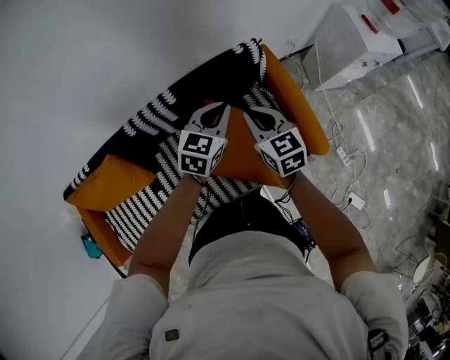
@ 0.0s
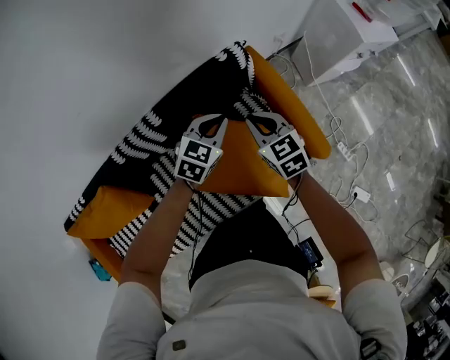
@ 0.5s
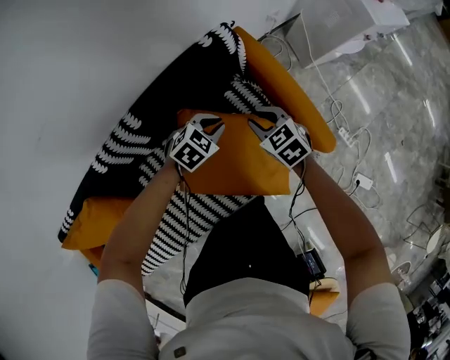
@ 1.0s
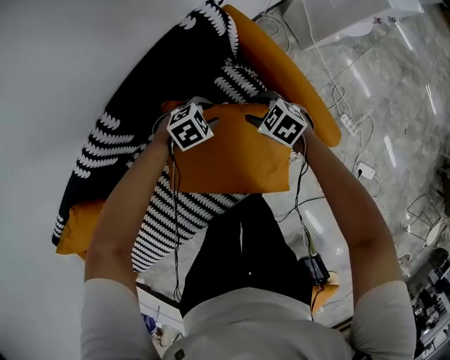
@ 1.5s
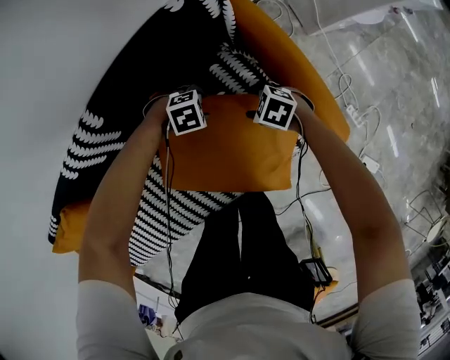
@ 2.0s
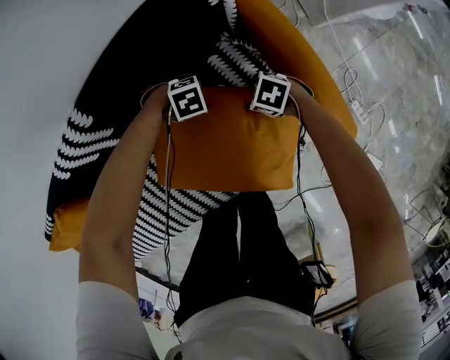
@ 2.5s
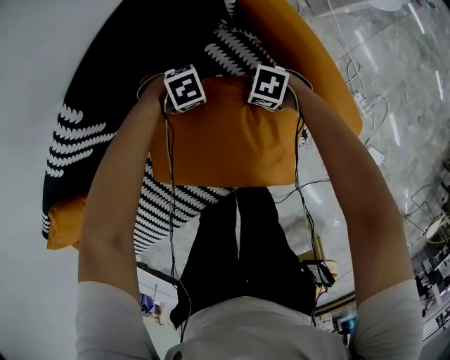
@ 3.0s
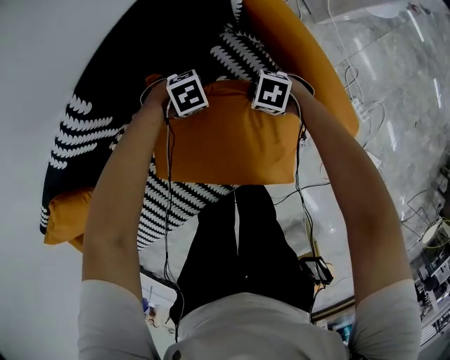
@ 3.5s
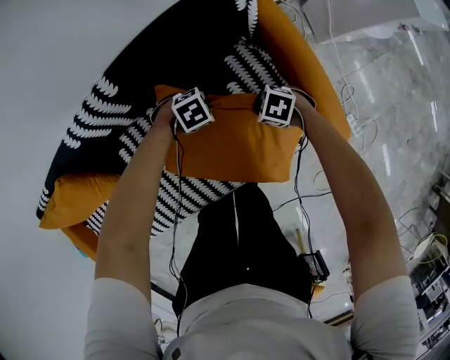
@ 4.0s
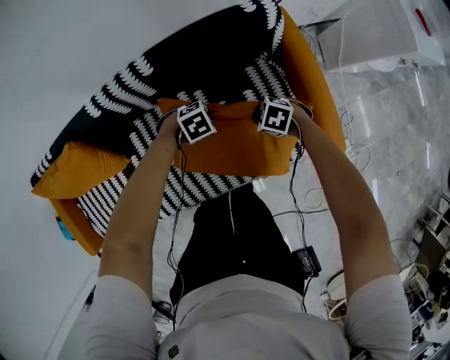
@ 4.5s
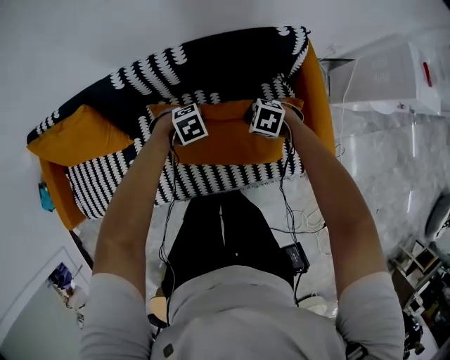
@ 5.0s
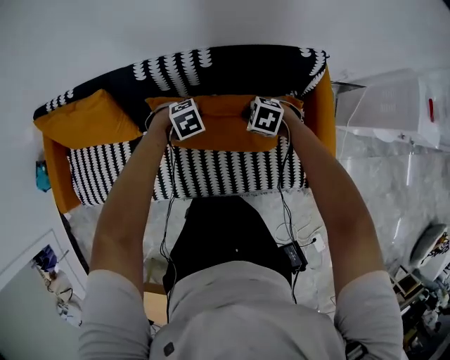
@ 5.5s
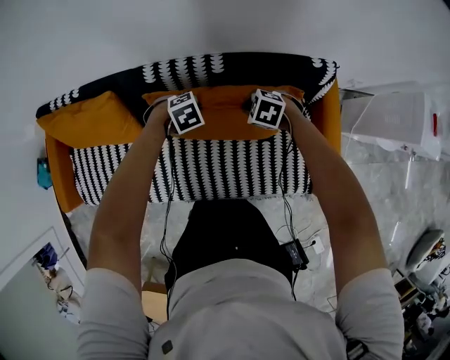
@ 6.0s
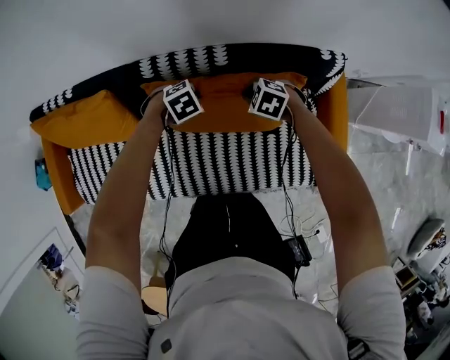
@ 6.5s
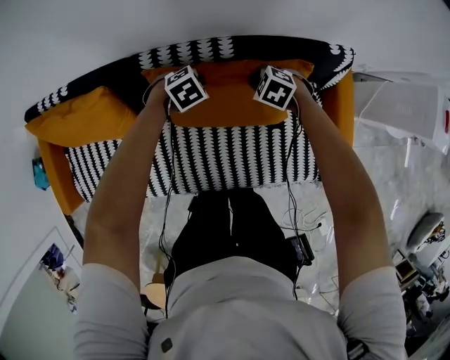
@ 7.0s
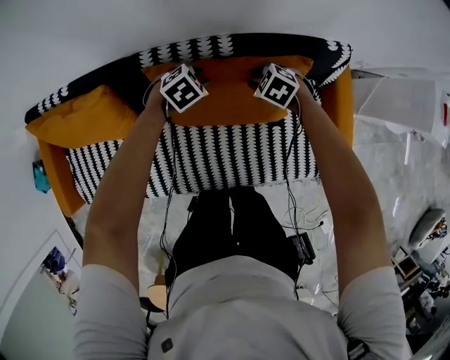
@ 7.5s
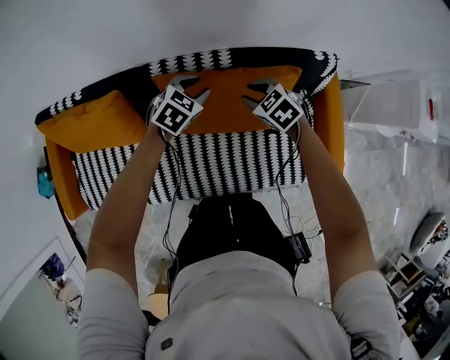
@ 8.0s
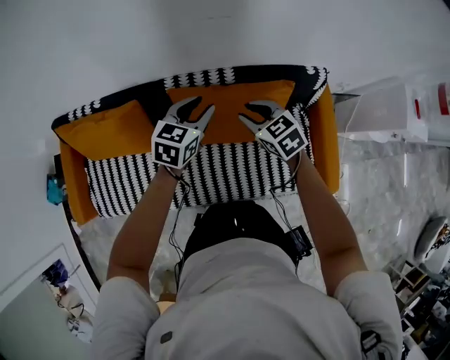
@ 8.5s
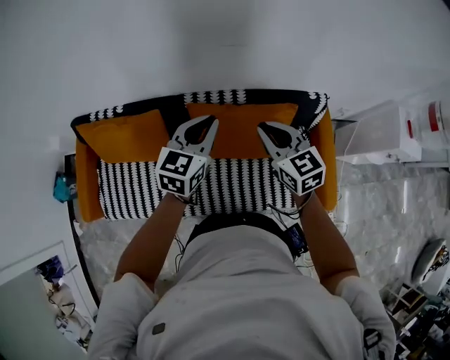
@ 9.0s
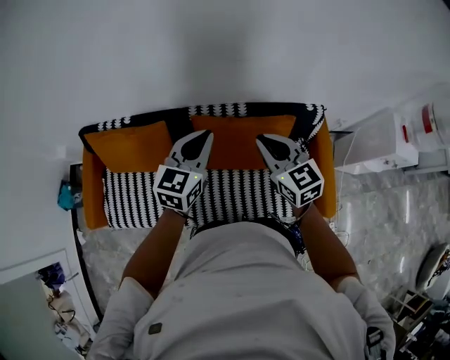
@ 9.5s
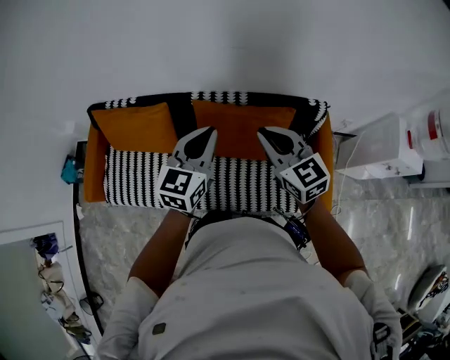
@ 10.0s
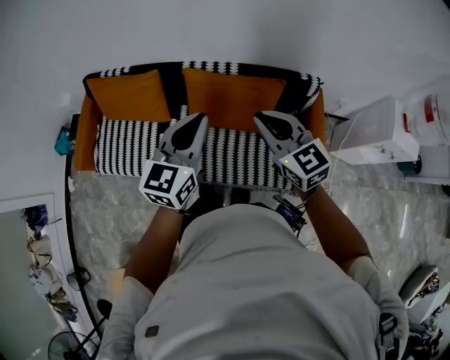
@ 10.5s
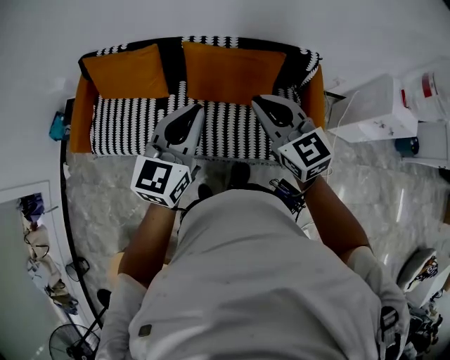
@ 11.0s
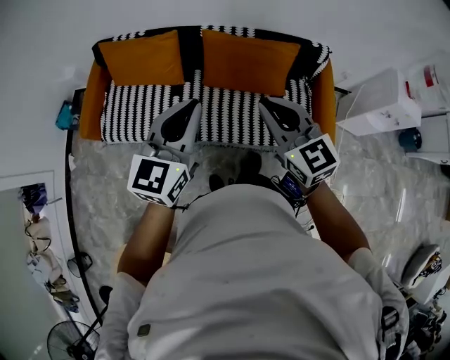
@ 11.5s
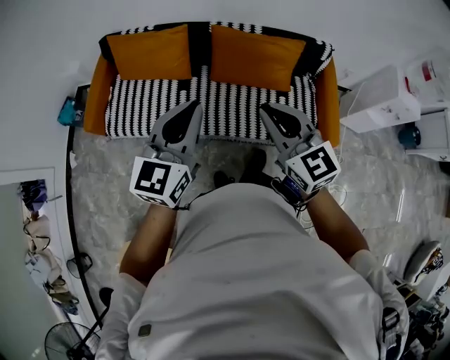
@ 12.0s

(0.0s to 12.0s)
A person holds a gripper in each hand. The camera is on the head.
0.0s - 2.0s: The grippers both shift downward by roughly 50 cm. The right gripper tips its fingers downward by about 40 degrees, and opens up; the left gripper angles its fingers downward, by some 40 degrees, and opens its fingers.
2.0s - 4.0s: The left gripper travels downward and back again, approximately 5 cm each way, and closes. The right gripper shifts roughly 5 cm forward, travels downward and back again, roughly 10 cm each way, and closes up.
4.0s - 6.0s: The right gripper ends up approximately 30 cm from where it was, and changes its angle by about 30 degrees. The left gripper shifts by some 30 cm, and rotates about 30 degrees.
6.0s - 8.0s: Both grippers travel together upward, approximately 10 cm. The right gripper rotates roughly 30 degrees, and opens up, while the left gripper turns by about 40 degrees, and opens up.
8.0s - 10.0s: Both grippers travel together upward and backward, some 40 cm. The left gripper points its fingers about 40 degrees further upward, and closes up. Meanwhile the right gripper tilts its fingers approximately 40 degrees upward, and closes.
10.0s - 12.0s: Both grippers travel together backward and to the left, about 35 cm.

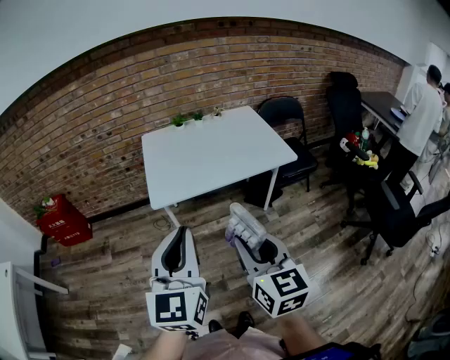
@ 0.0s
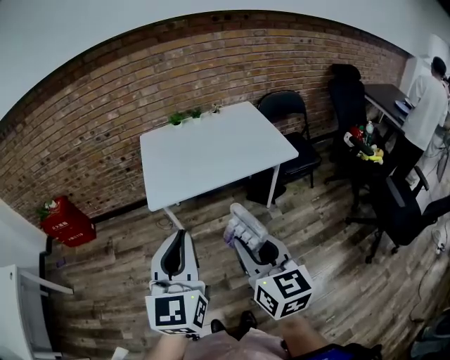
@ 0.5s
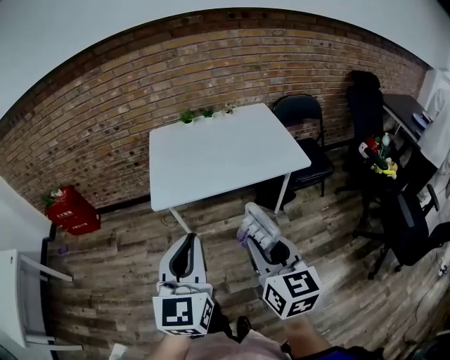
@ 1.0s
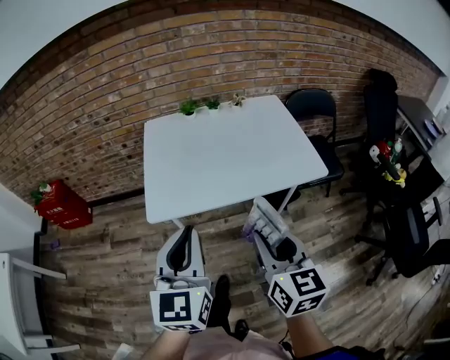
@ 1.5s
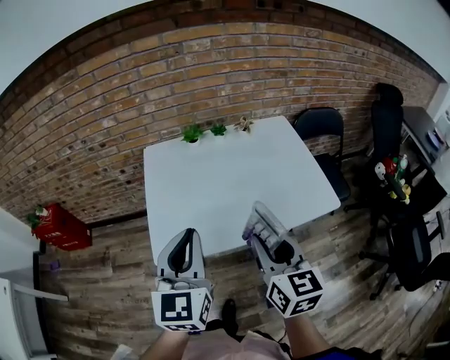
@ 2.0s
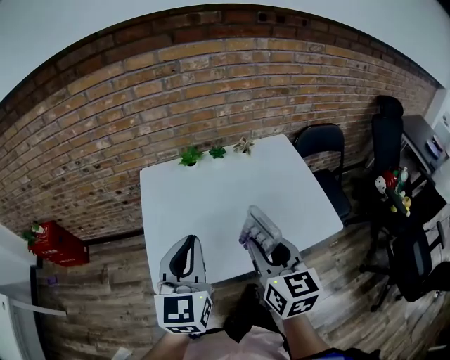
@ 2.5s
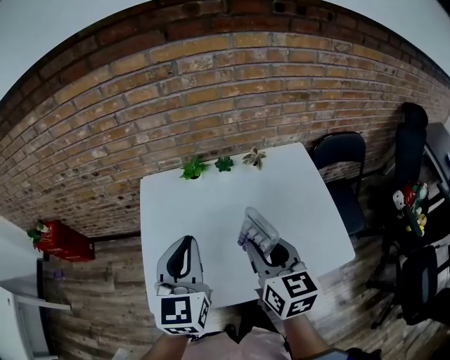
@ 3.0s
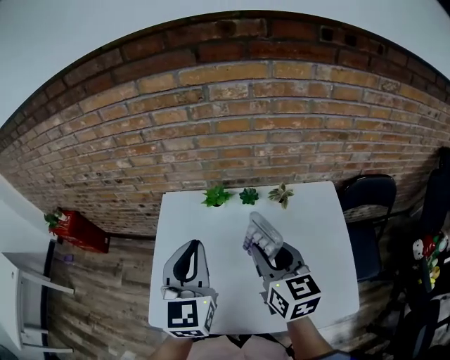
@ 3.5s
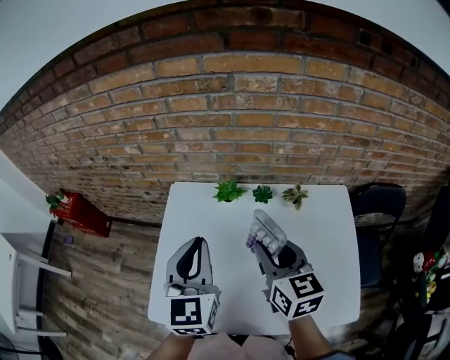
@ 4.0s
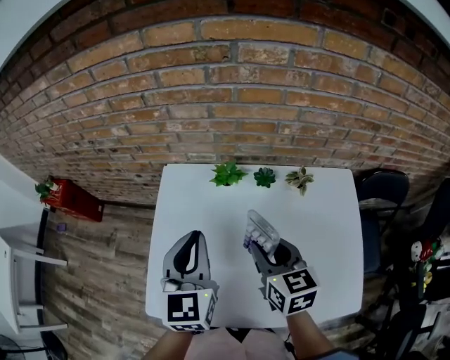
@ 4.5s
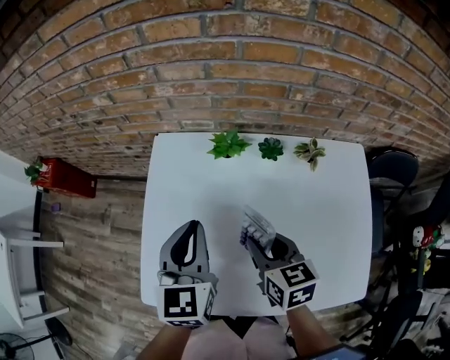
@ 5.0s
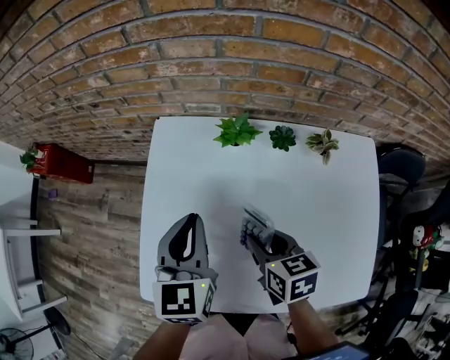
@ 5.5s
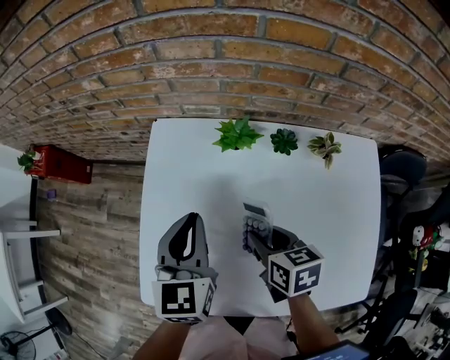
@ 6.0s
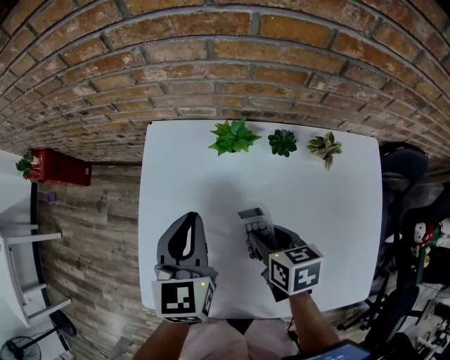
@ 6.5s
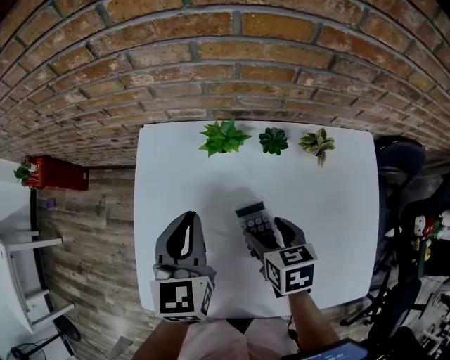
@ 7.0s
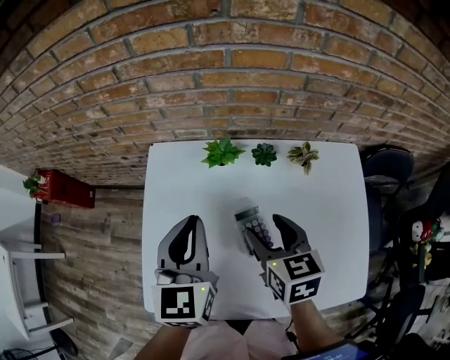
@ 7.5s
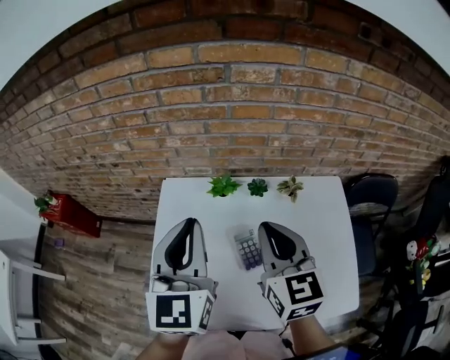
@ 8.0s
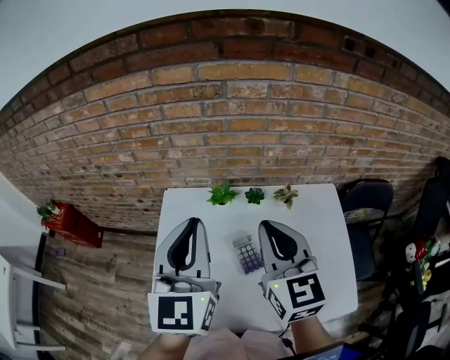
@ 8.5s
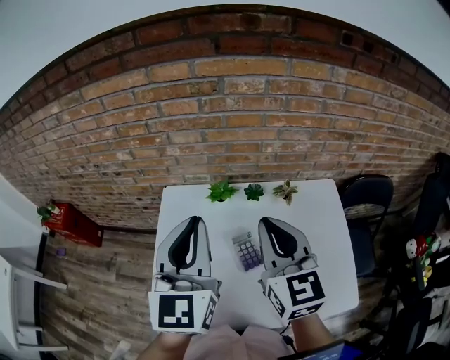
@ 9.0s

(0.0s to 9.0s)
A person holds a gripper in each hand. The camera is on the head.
0.0s - 2.0s: The two grippers go about 35 cm forward.
2.0s - 4.5s: The grippers both shift forward by about 30 cm. The left gripper changes its angle by approximately 20 degrees; the right gripper swivels some 30 degrees.
4.5s - 7.0s: The right gripper shifts about 15 cm downward, changes its angle by roughly 30 degrees, and opens; the left gripper is displaced downward and forward by some 10 cm.
7.0s - 9.0s: Both grippers travel together upward, approximately 25 cm. The left gripper swivels some 30 degrees; the right gripper tips its fingers upward by roughly 40 degrees, and closes its fingers.

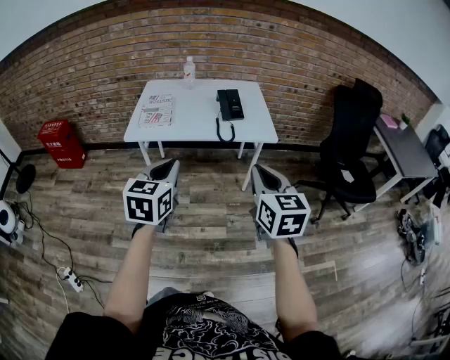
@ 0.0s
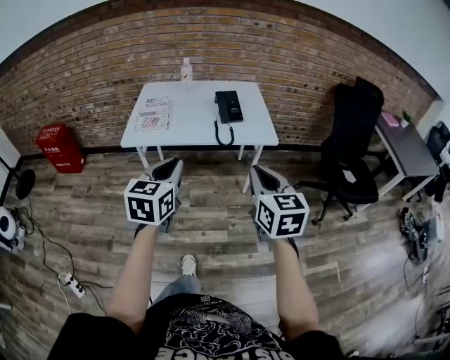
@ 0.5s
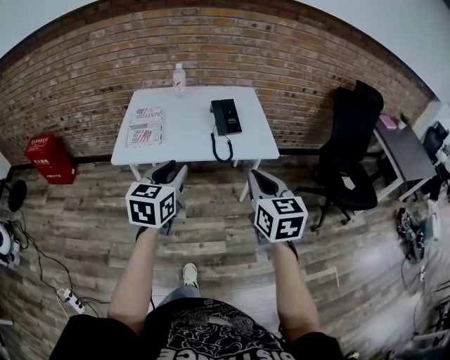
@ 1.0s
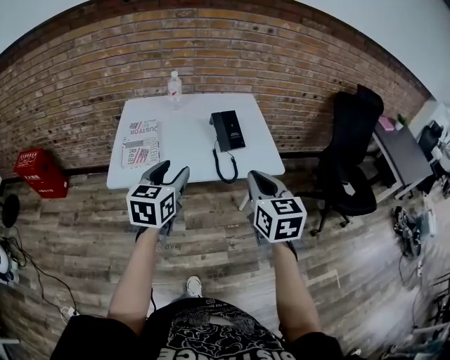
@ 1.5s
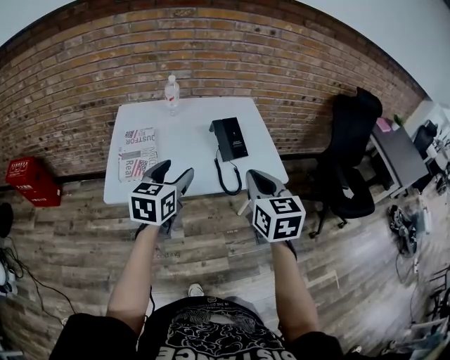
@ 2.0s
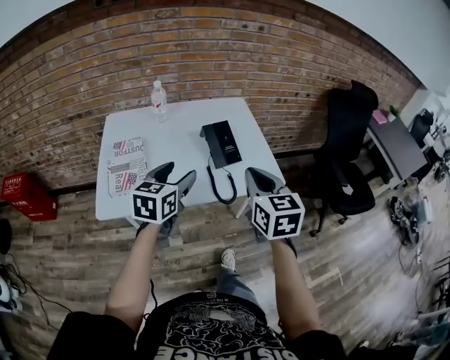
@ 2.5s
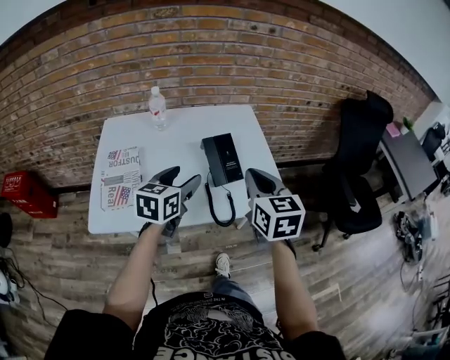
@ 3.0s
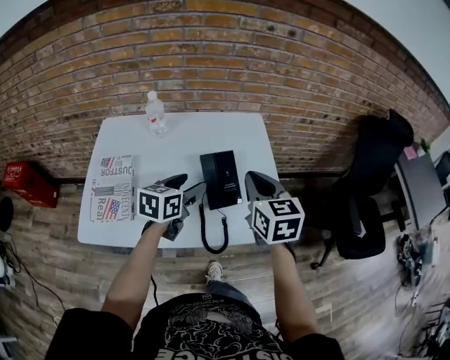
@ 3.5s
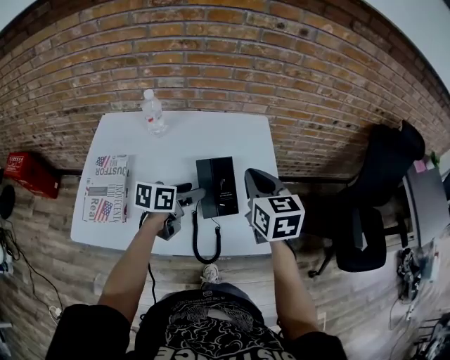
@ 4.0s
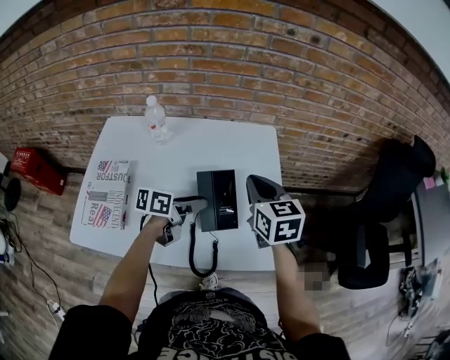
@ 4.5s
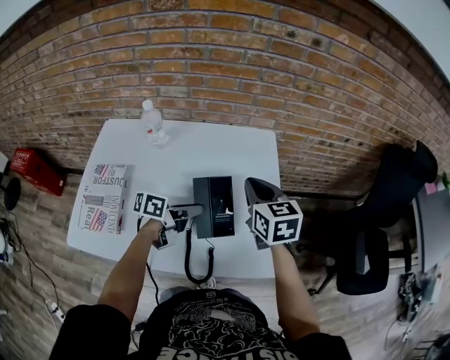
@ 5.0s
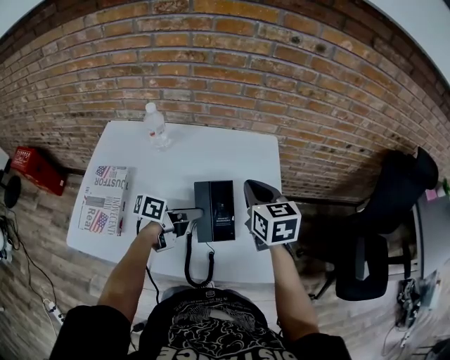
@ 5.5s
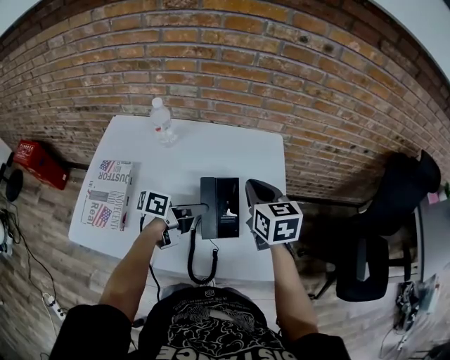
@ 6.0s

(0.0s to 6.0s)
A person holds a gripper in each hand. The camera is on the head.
0.0s - 2.0s: Both grippers move forward, approximately 30 cm. The left gripper opens up.
2.0s - 4.0s: The left gripper travels forward and downward by some 30 cm, and rotates about 30 degrees; the right gripper is displaced forward by about 30 cm.
4.0s - 6.0s: The right gripper goes roughly 5 cm forward, while the left gripper swivels some 30 degrees, and closes up.
